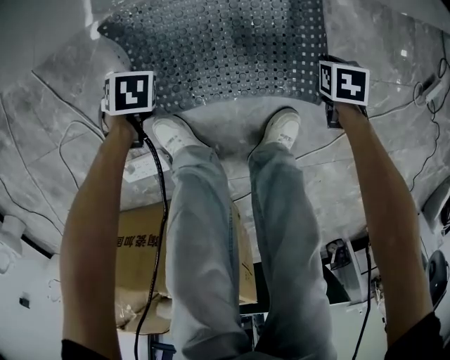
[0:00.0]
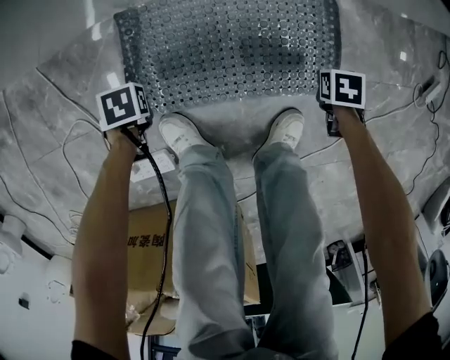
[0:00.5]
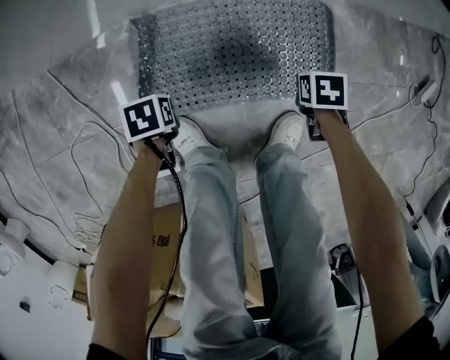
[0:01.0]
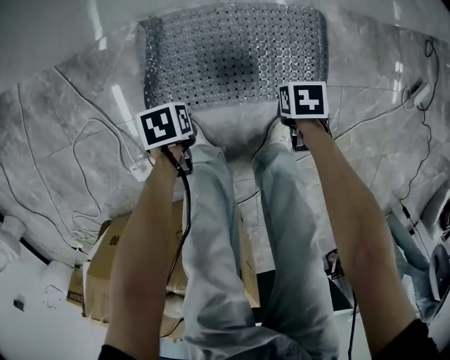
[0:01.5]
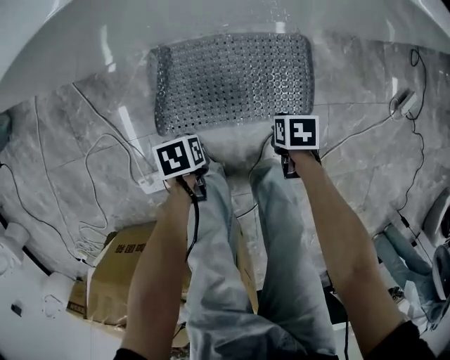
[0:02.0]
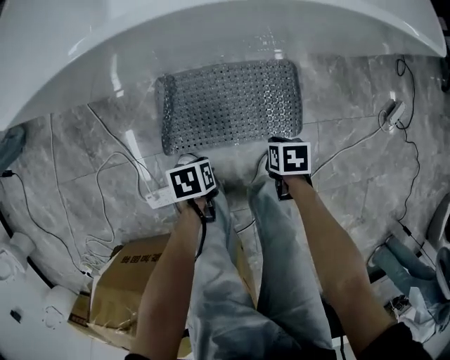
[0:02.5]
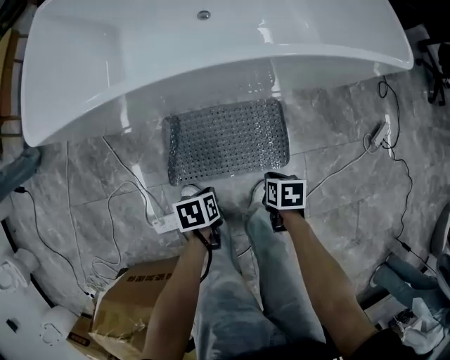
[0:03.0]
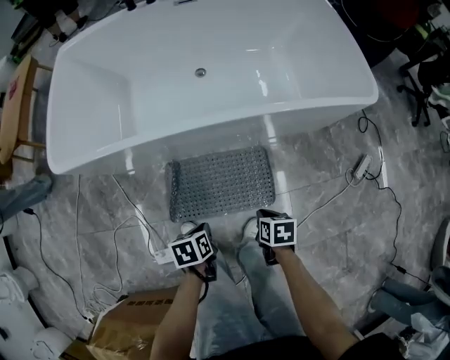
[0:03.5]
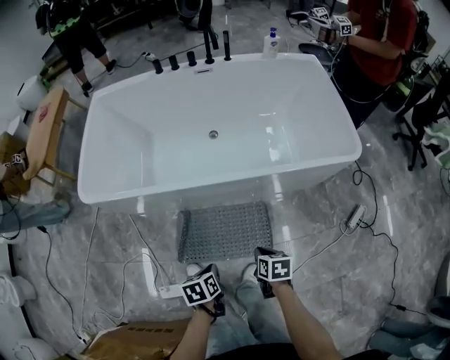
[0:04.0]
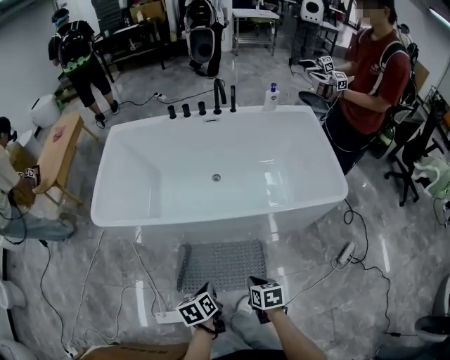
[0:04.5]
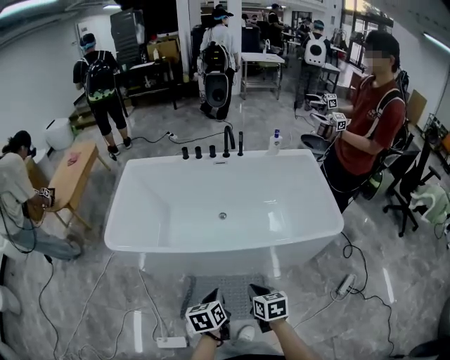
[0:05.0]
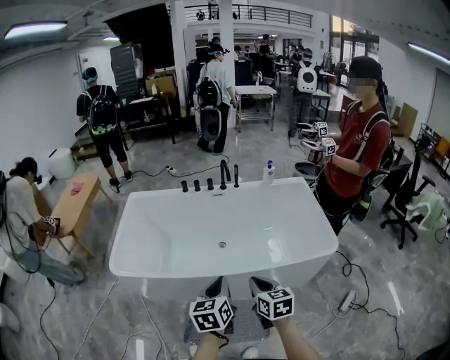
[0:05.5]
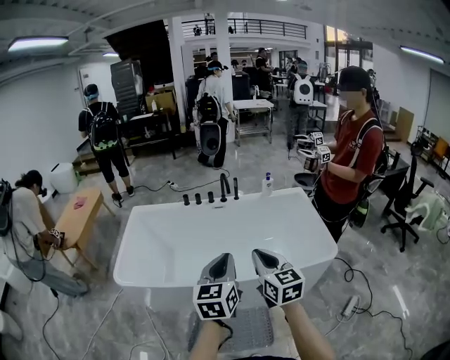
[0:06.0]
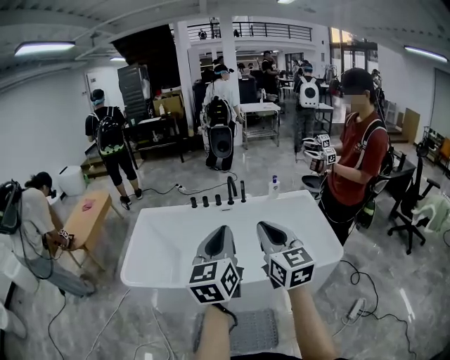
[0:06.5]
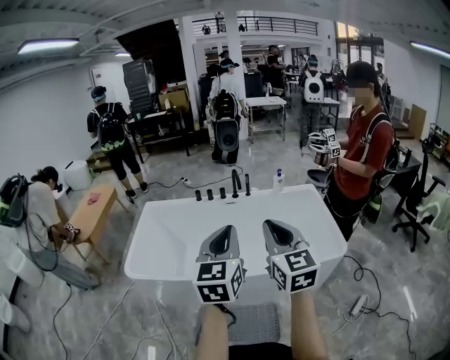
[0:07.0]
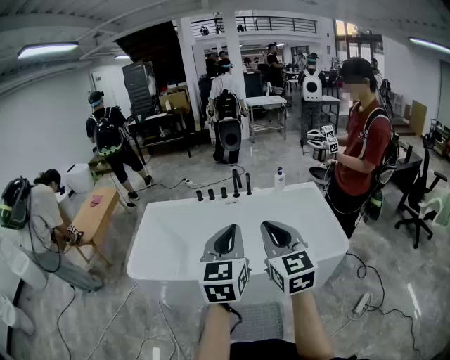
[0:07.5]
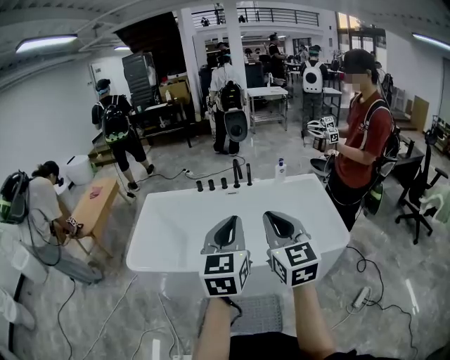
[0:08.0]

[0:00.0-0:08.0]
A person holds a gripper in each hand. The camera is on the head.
0:00.0 to 0:02.0: The left gripper travels upward by roughly 15 cm, and rotates about 40 degrees. The right gripper moves some 20 cm, and opens and closes again.
0:02.0 to 0:04.0: The two grippers go some 40 cm upward. The right gripper swivels approximately 30 degrees. The left gripper changes its angle by roughly 30 degrees.
0:04.0 to 0:06.0: Both grippers move upward, approximately 50 cm. The left gripper tilts its fingers approximately 50 degrees upward, while the right gripper tips its fingers upward by roughly 50 degrees.
0:06.0 to 0:08.0: The grippers both shift upward by approximately 10 cm.

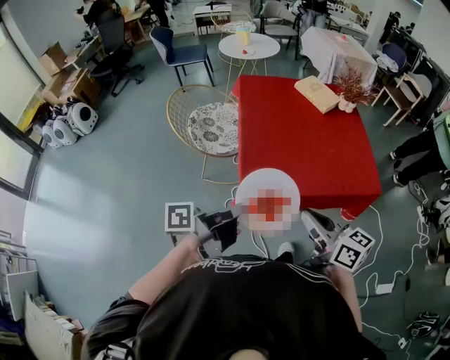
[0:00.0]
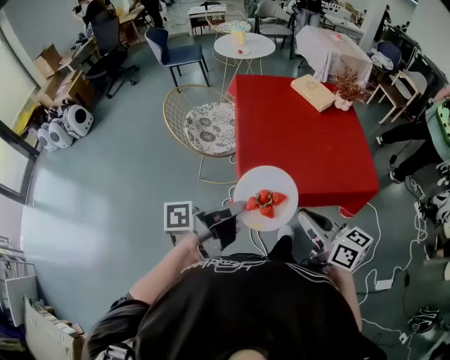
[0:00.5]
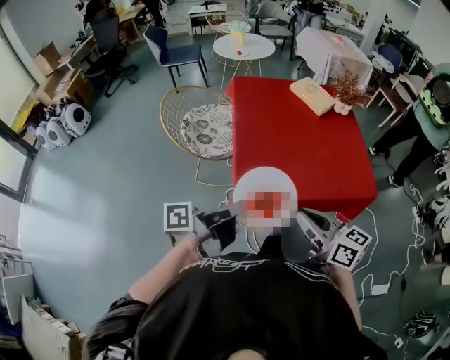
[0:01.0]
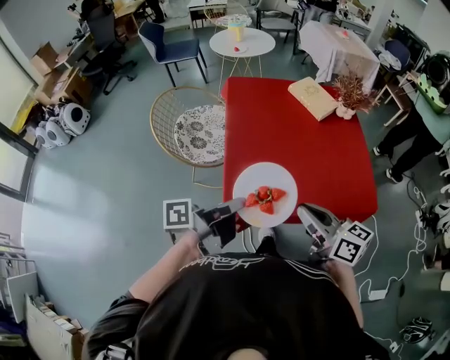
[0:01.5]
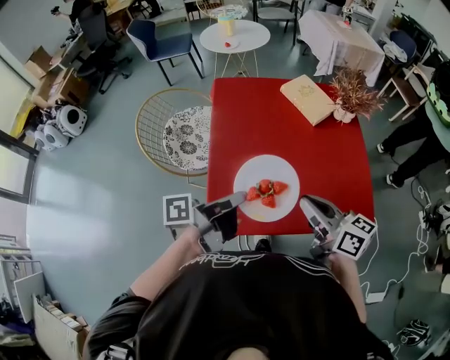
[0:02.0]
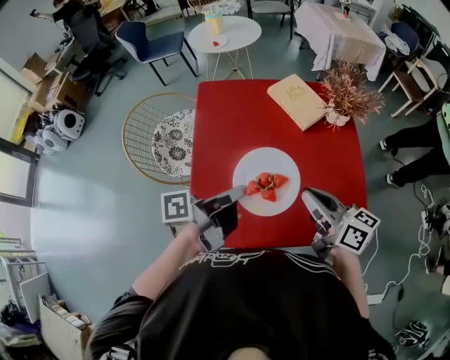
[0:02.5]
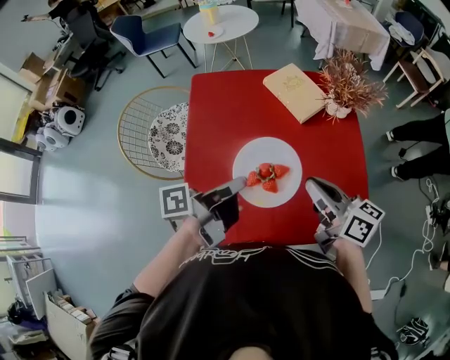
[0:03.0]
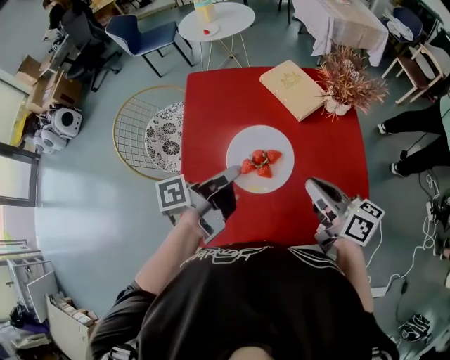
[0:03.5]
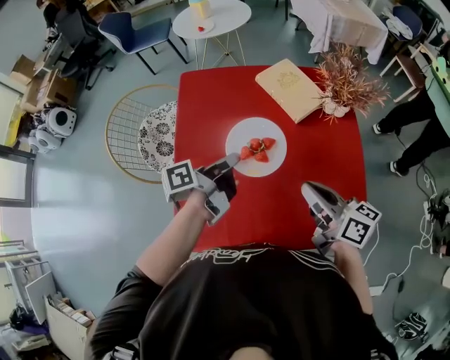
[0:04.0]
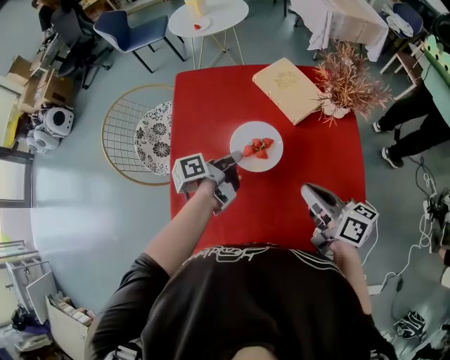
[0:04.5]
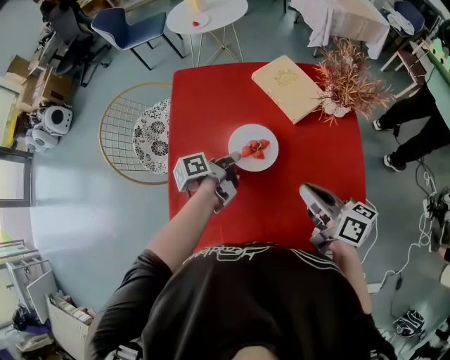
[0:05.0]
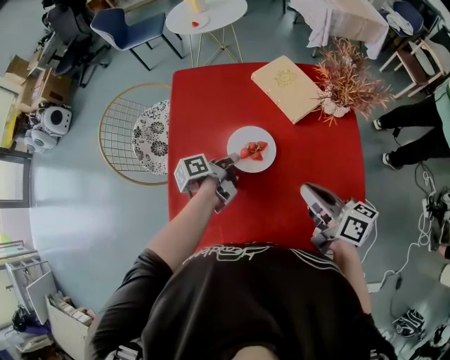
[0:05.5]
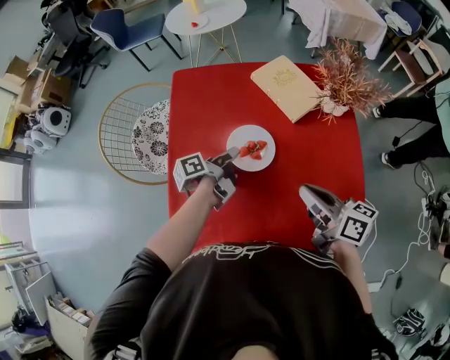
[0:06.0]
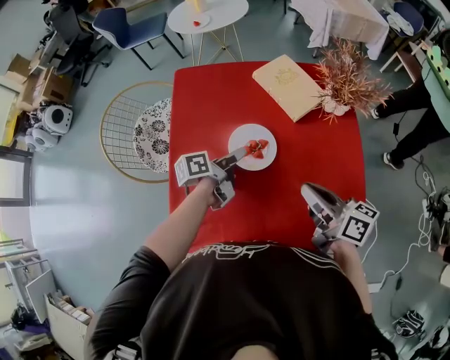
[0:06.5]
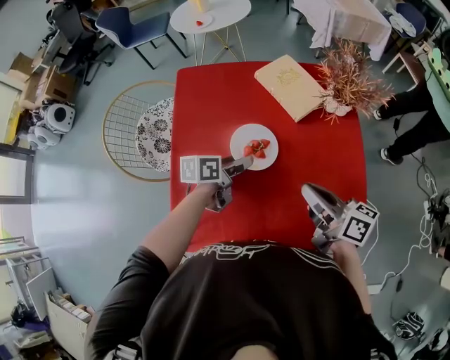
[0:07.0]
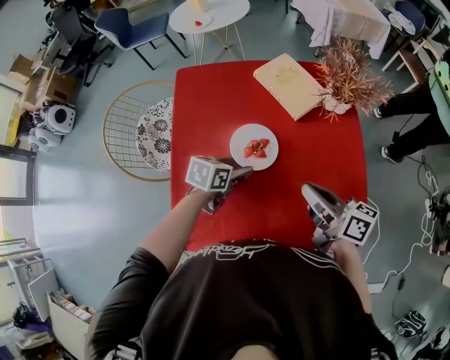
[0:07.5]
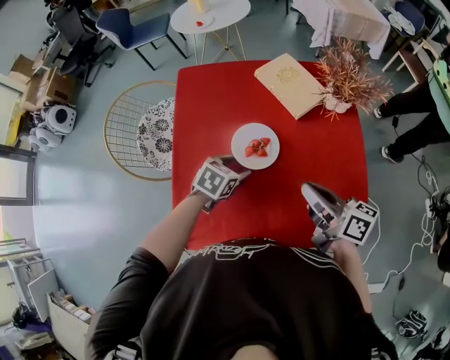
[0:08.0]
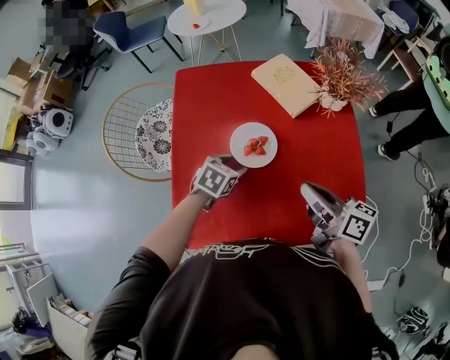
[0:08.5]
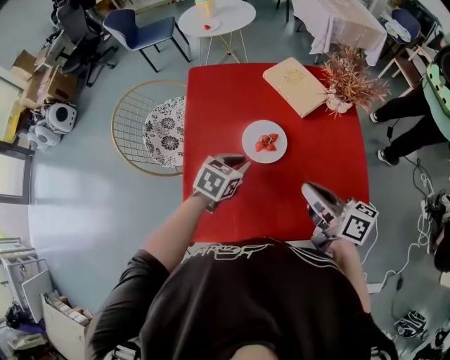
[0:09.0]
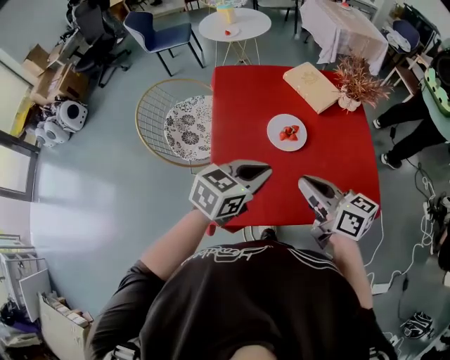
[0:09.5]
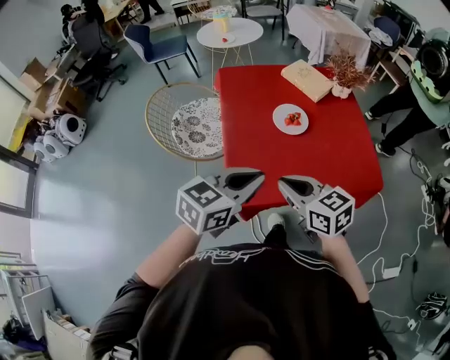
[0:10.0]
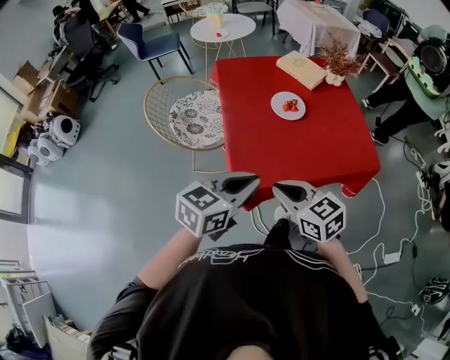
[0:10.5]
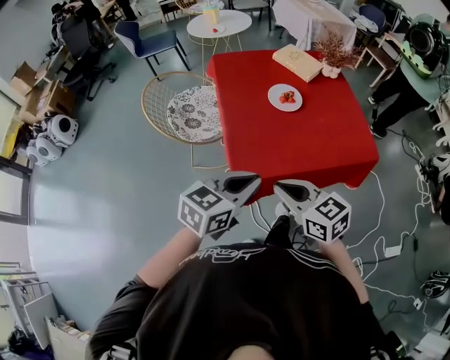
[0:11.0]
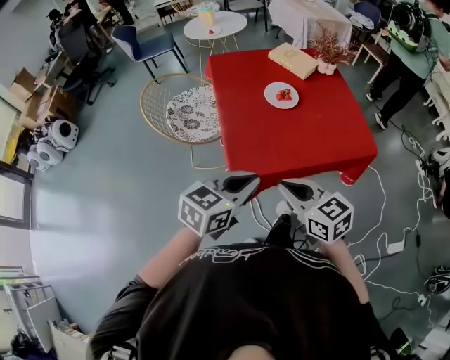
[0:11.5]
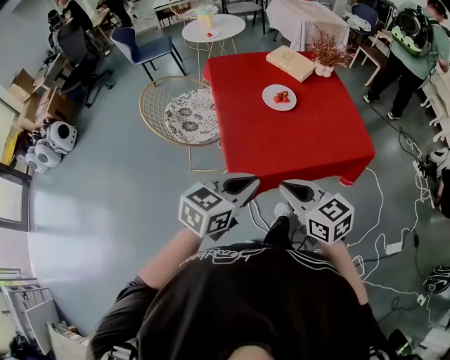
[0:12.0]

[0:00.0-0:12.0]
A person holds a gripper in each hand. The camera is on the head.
0:00.0 to 0:02.0: The right gripper heads forward, covering about 20 cm, while the left gripper moves forward and to the right, approximately 20 cm.
0:02.0 to 0:04.0: The right gripper is displaced forward, to the right and downward by approximately 15 cm. Meanwhile the left gripper shifts approximately 25 cm forward, downward and to the right.
0:04.0 to 0:06.0: The left gripper travels downward by some 10 cm, and opens its fingers.
0:06.0 to 0:08.0: The left gripper moves backward, approximately 5 cm, rolls clockwise, seen from behind, by approximately 80 degrees, and opens.
0:08.0 to 0:10.0: The right gripper heads to the left and backward, covering some 30 cm, and changes its angle by approximately 40 degrees. Meanwhile the left gripper moves backward and upward, roughly 35 cm, points its fingers roughly 30 degrees further upward, and closes up.
0:10.0 to 0:12.0: Both grippers travel together backward, about 10 cm.

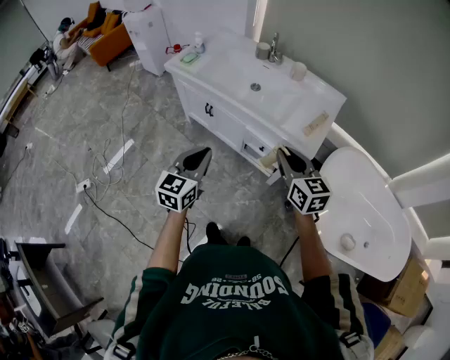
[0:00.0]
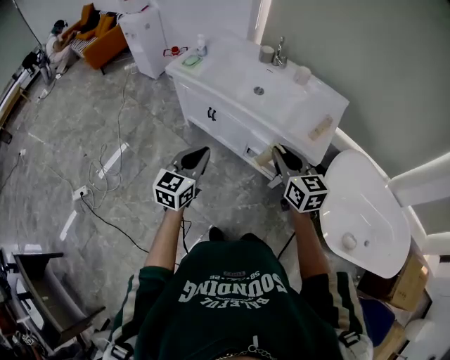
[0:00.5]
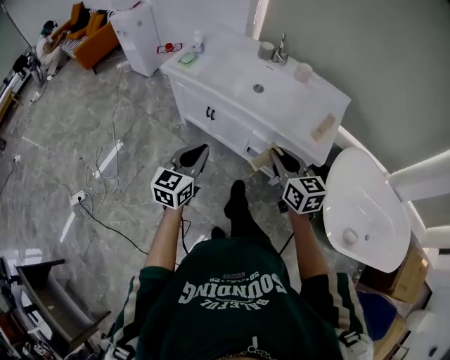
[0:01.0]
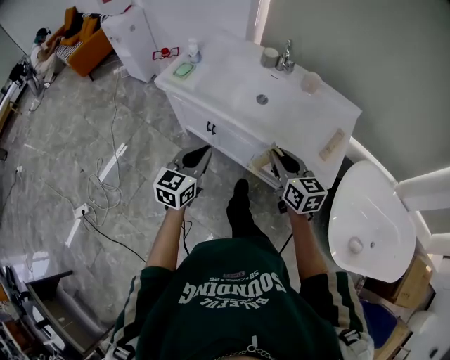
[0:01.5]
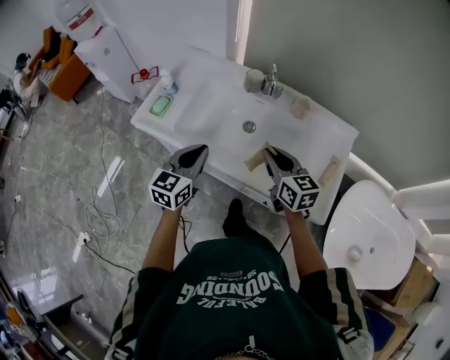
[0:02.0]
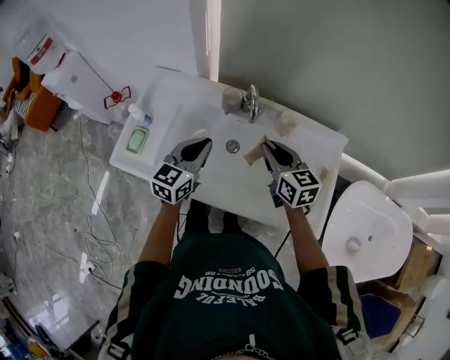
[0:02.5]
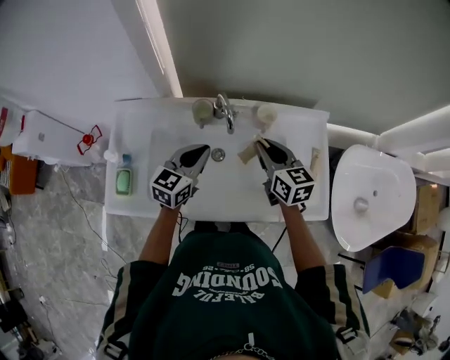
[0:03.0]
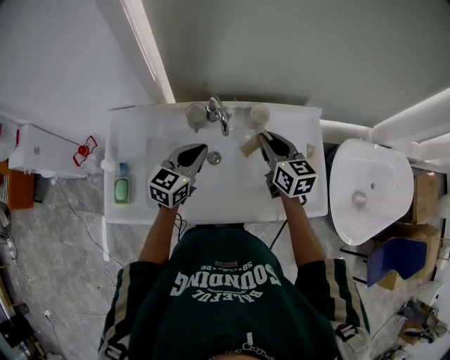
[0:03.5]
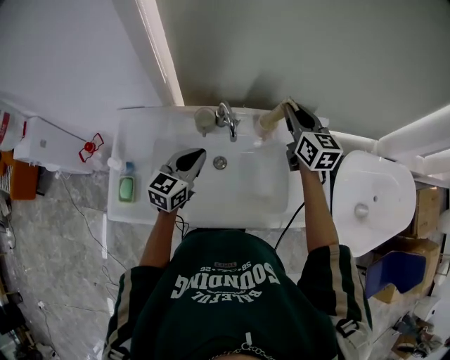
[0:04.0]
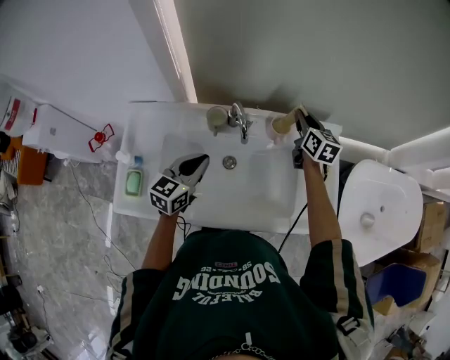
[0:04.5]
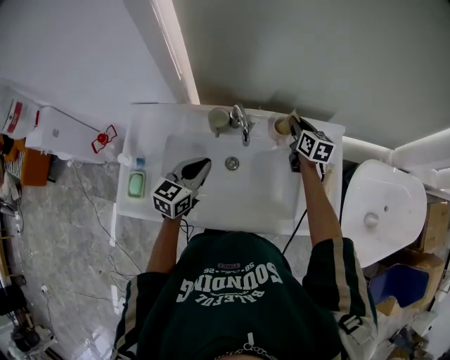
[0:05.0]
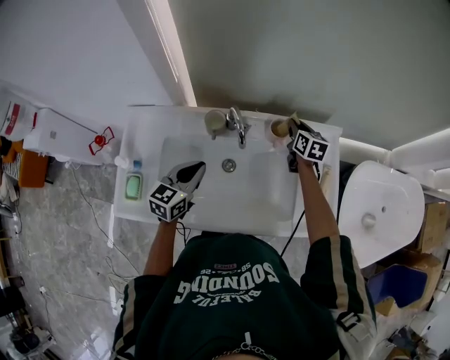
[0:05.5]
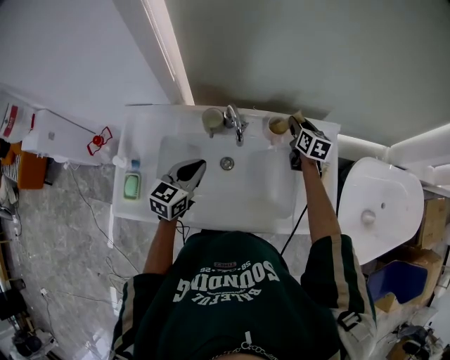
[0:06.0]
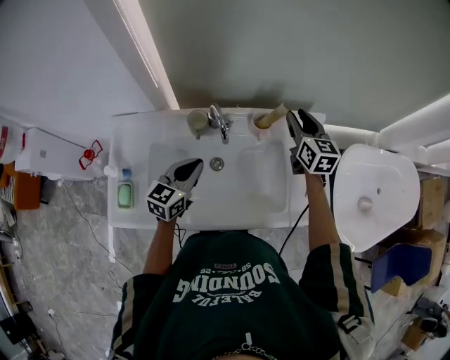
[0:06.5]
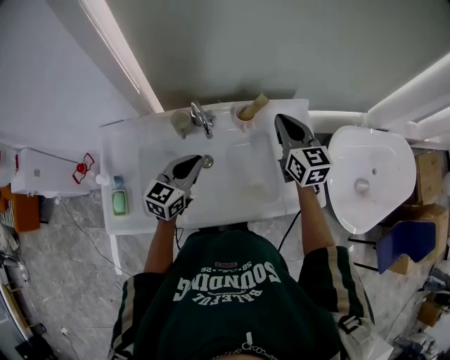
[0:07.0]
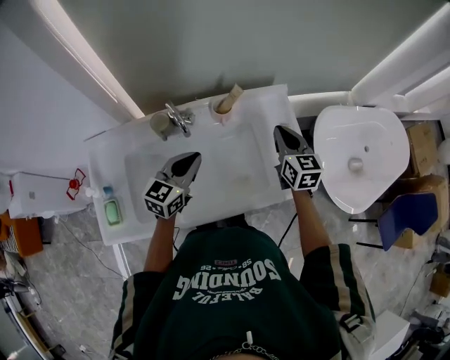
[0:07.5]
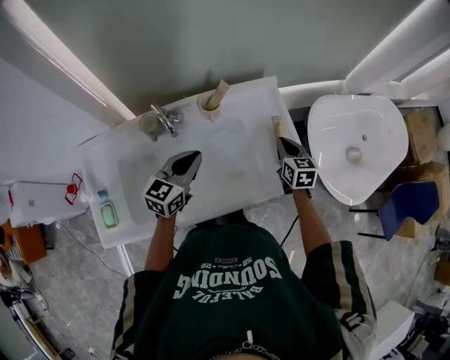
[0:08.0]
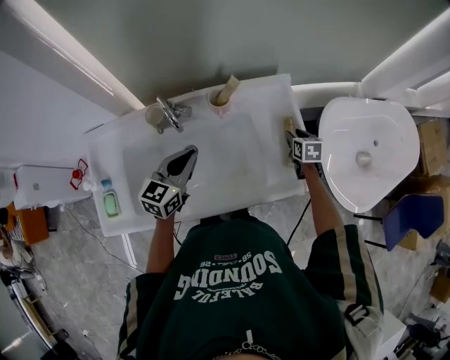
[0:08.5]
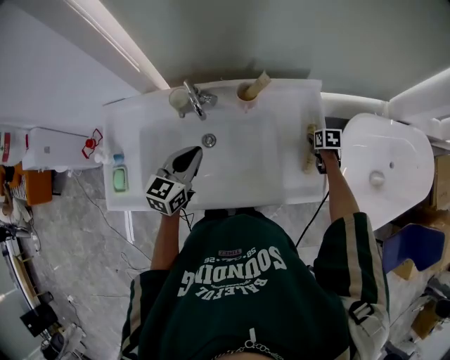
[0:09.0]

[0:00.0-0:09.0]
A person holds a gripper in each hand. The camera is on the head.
0:00.0 to 0:02.0: The two grippers go some 40 cm forward.
0:02.0 to 0:04.5: The right gripper goes upward and returns, roughly 10 cm each way, and turns by some 40 degrees, while the left gripper shifts by some 25 cm, and swivels roughly 30 degrees.
0:04.5 to 0:07.0: The left gripper shifts approximately 5 cm to the right. Meanwhile the right gripper shifts some 15 cm backward and upward, and opens, then closes once more.
0:07.0 to 0:09.0: The right gripper moves downward and to the right, some 40 cm, tilts its fingers about 50 degrees downward, and opens. The left gripper travels to the right and back again, roughly 10 cm each way.
